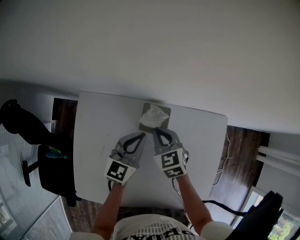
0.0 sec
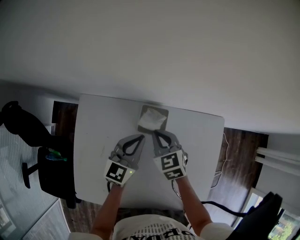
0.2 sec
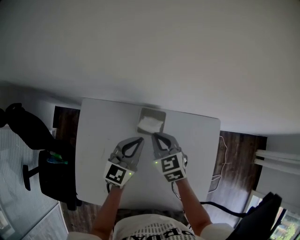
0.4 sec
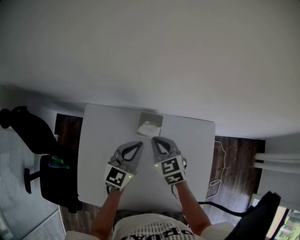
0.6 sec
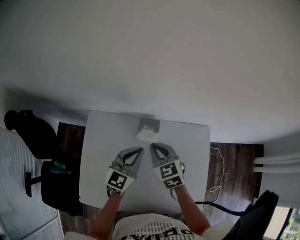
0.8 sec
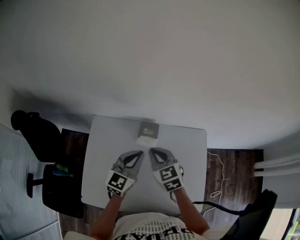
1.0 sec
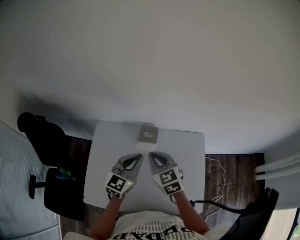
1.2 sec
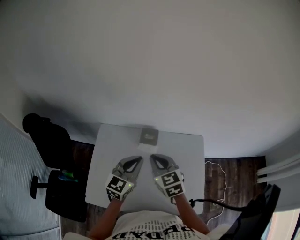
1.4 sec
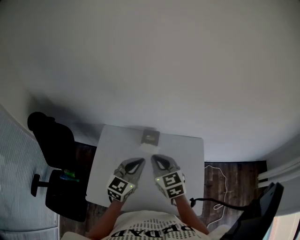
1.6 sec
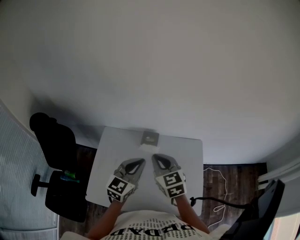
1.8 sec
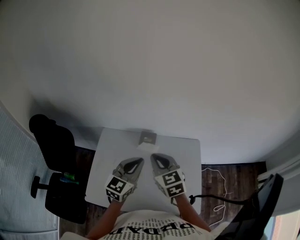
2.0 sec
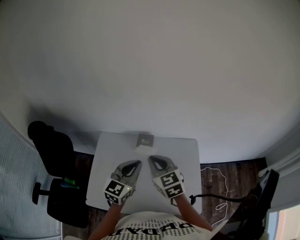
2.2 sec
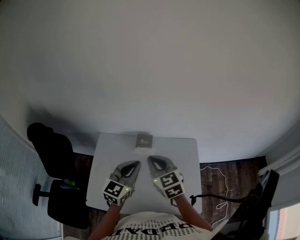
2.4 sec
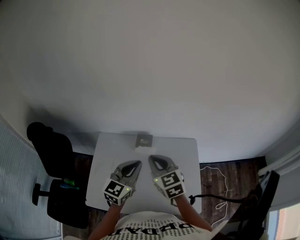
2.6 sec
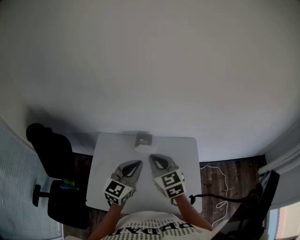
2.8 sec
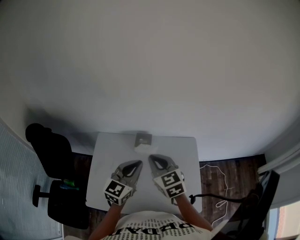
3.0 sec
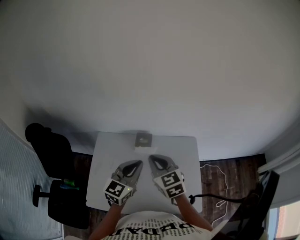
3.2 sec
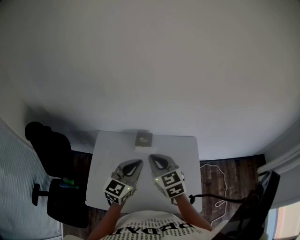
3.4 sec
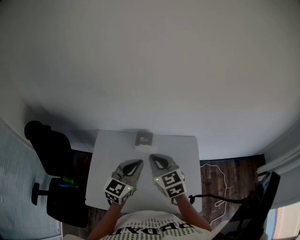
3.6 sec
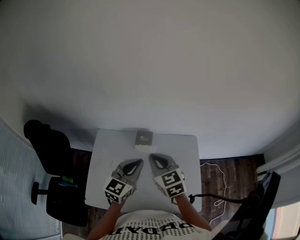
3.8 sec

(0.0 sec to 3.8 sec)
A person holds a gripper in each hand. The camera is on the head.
0.0 sec - 1.2 sec: The grippers both shift upward and backward by approximately 25 cm.
1.2 sec - 2.6 sec: The grippers both shift upward and backward by roughly 10 cm.
2.6 sec - 3.8 sec: The grippers make only small movements.

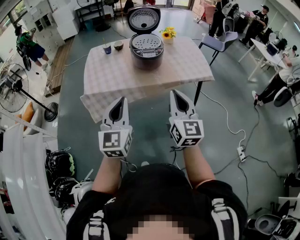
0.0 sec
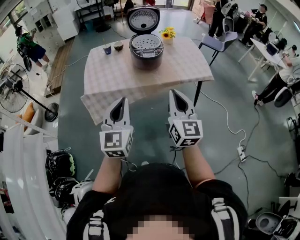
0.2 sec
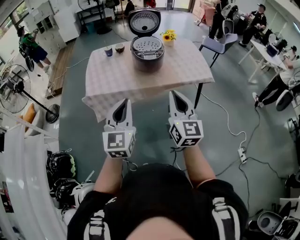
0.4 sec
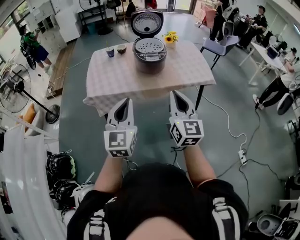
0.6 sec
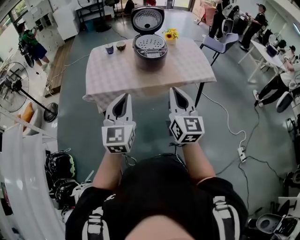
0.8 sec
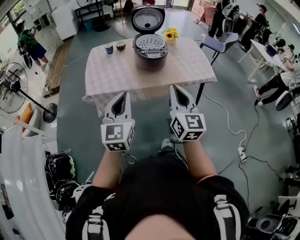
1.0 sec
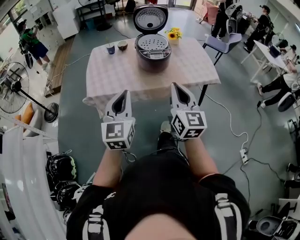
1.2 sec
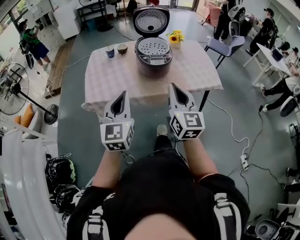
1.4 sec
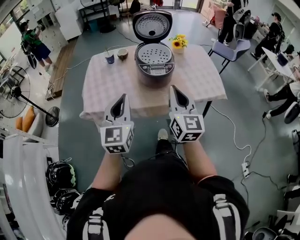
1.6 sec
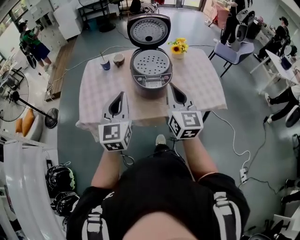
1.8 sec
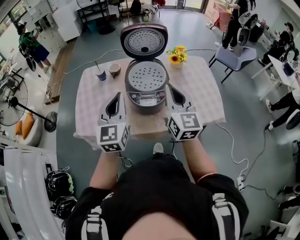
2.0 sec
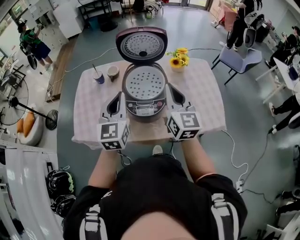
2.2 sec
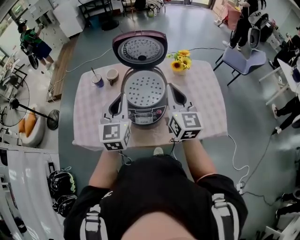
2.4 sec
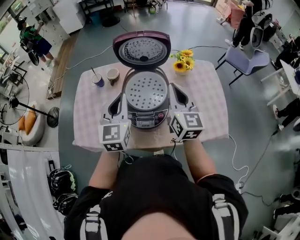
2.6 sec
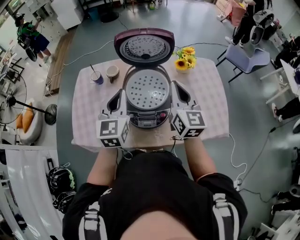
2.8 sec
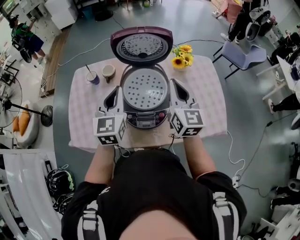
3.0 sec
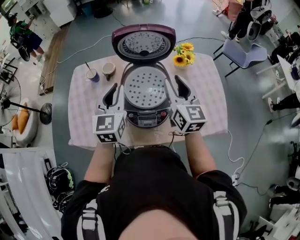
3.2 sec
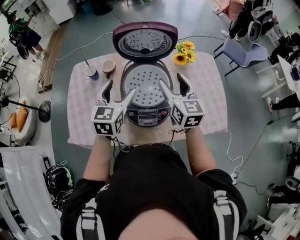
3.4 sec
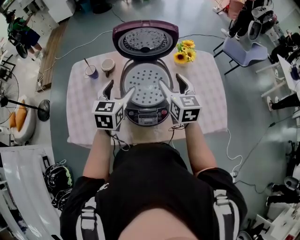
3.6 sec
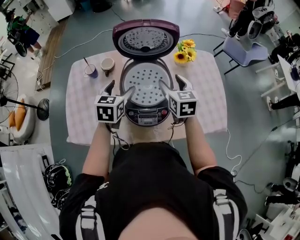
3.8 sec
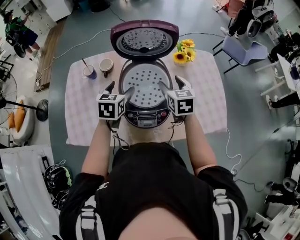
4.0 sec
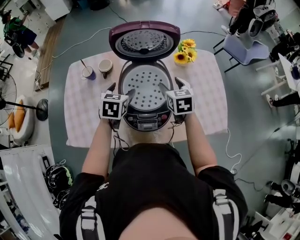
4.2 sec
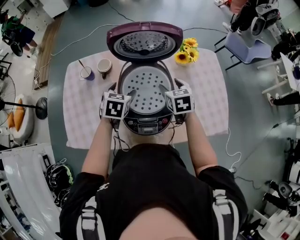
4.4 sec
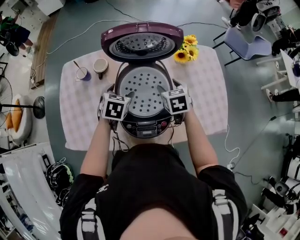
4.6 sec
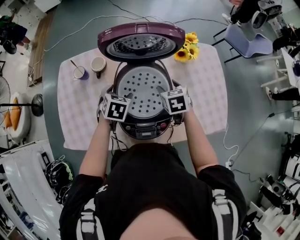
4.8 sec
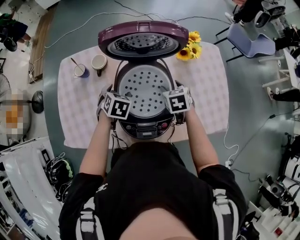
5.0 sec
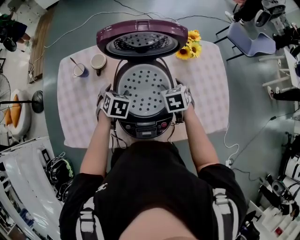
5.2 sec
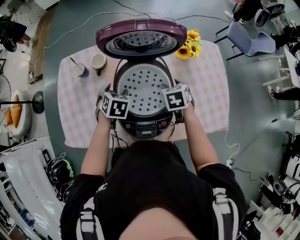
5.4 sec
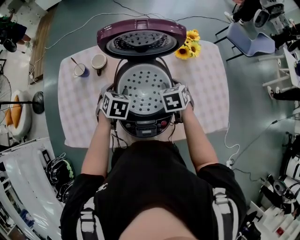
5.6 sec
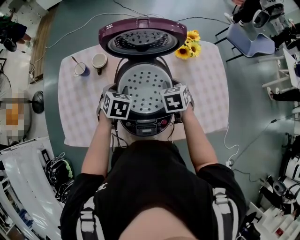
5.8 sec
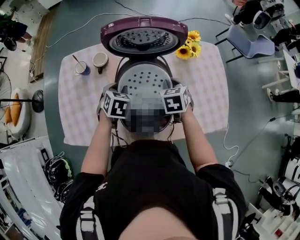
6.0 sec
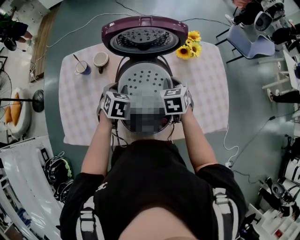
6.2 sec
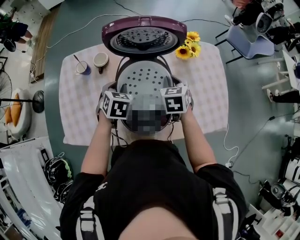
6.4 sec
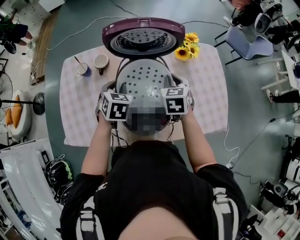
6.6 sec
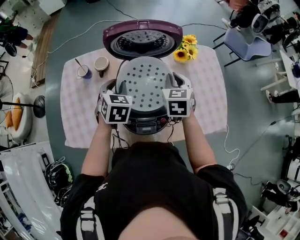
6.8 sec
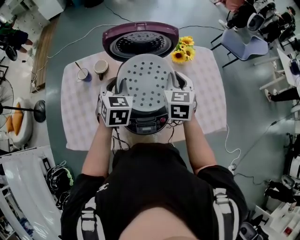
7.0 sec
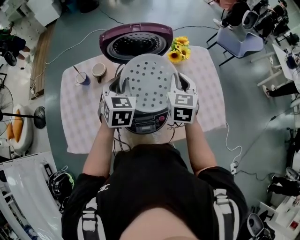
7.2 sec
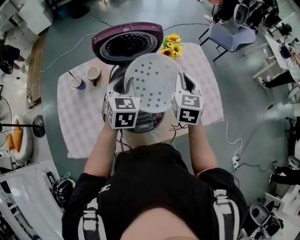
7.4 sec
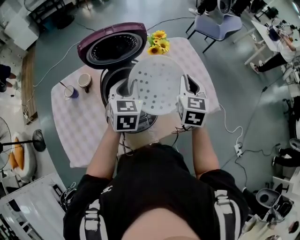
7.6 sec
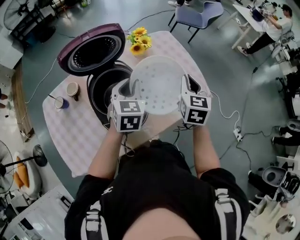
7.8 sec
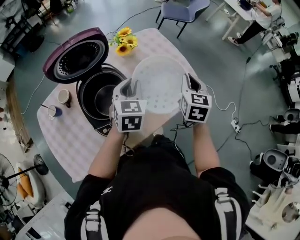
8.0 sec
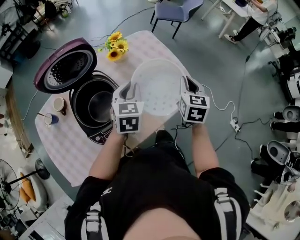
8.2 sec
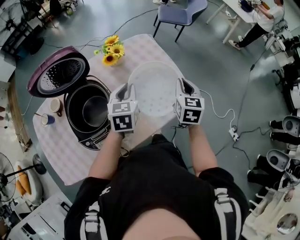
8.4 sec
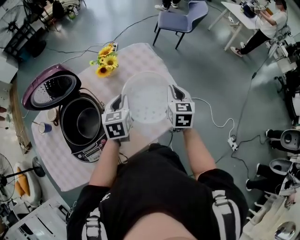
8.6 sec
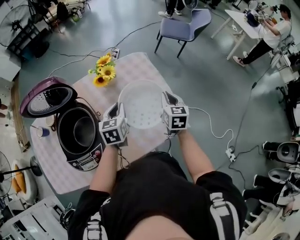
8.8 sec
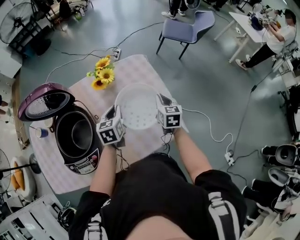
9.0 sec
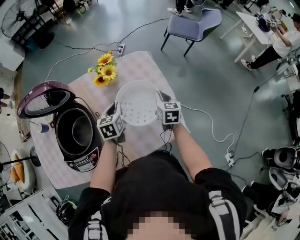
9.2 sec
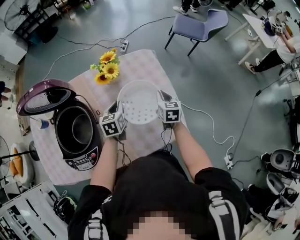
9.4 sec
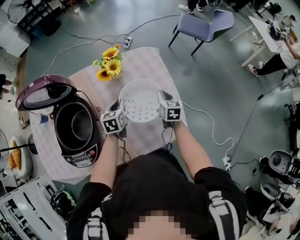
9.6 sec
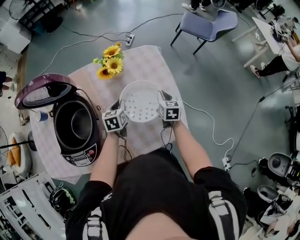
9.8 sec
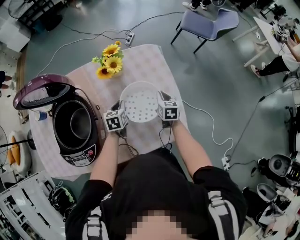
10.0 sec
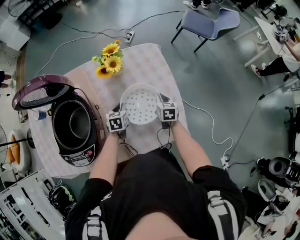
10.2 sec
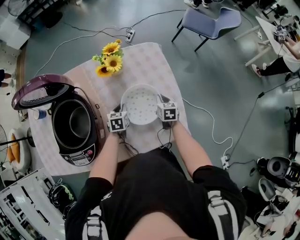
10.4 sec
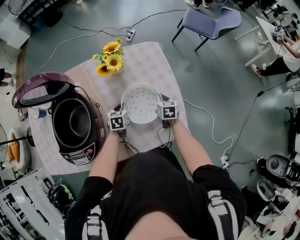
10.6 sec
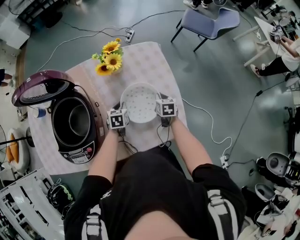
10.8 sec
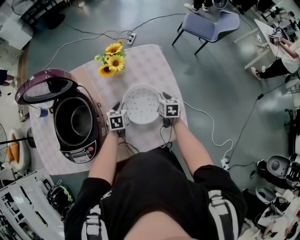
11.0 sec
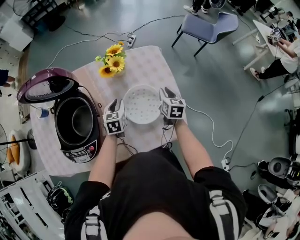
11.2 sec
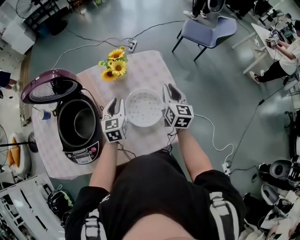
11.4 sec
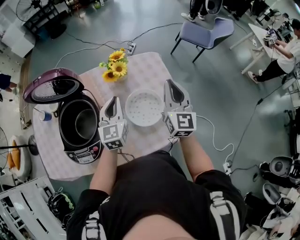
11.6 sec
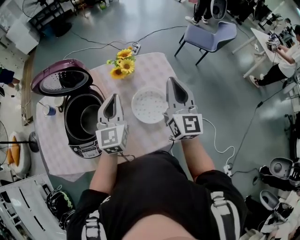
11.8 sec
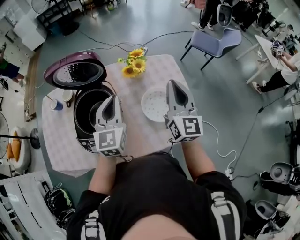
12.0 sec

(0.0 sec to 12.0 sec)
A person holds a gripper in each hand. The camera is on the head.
0.0 sec - 1.6 sec: Both grippers move forward, approximately 20 cm.
1.6 sec - 3.0 sec: The two grippers go some 40 cm forward.
3.0 sec - 4.4 sec: Both grippers travel together downward and forward, some 20 cm. The right gripper tips its fingers downward by approximately 40 degrees, and opens; the left gripper points its fingers roughly 40 degrees further downward, and opens.
4.4 sec - 6.0 sec: The right gripper closes. The left gripper closes its fingers.
6.0 sec - 7.6 sec: The left gripper goes some 15 cm upward and to the right, and changes its angle by some 30 degrees. Meanwhile the right gripper shifts approximately 20 cm upward, to the right and backward, and changes its angle by about 40 degrees.
7.6 sec - 9.0 sec: The two grippers go approximately 30 cm to the right, forward and downward. The left gripper rotates roughly 20 degrees.
9.0 sec - 10.4 sec: Both grippers move downward, about 15 cm.
10.4 sec - 12.0 sec: The two grippers go roughly 35 cm upward. The left gripper angles its fingers upward, by about 40 degrees, while the right gripper angles its fingers upward, by roughly 50 degrees.

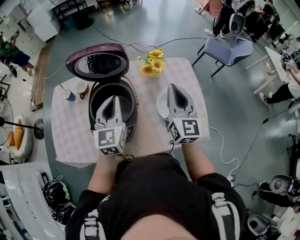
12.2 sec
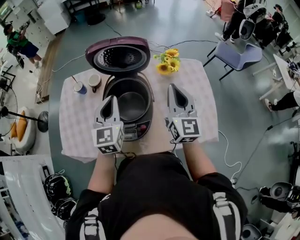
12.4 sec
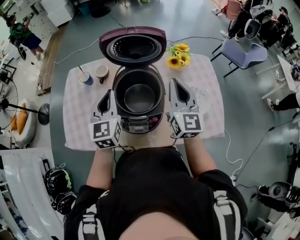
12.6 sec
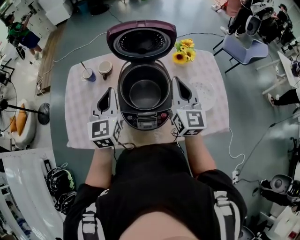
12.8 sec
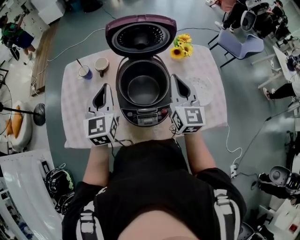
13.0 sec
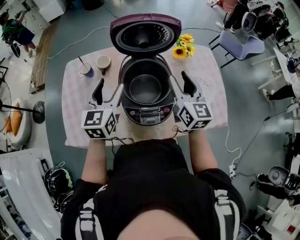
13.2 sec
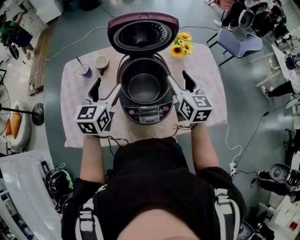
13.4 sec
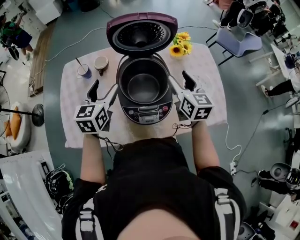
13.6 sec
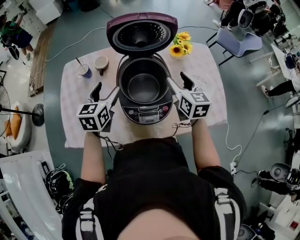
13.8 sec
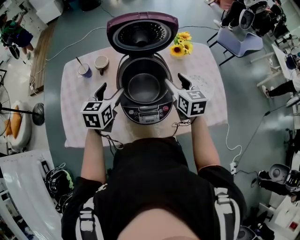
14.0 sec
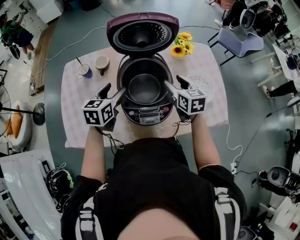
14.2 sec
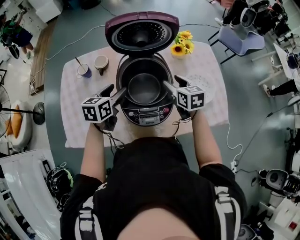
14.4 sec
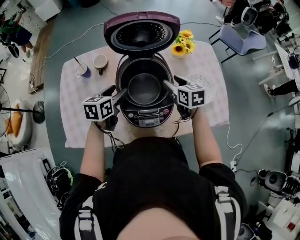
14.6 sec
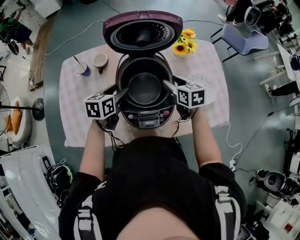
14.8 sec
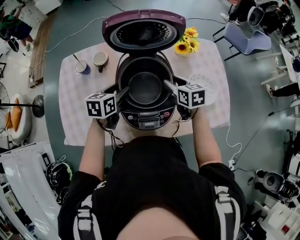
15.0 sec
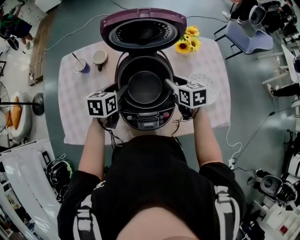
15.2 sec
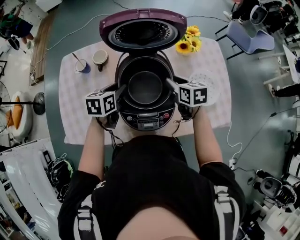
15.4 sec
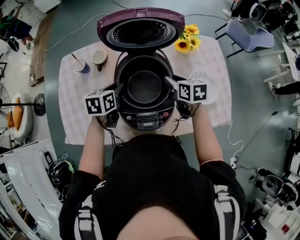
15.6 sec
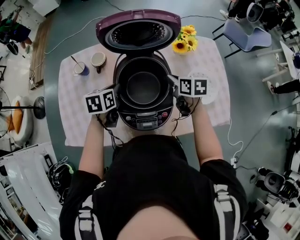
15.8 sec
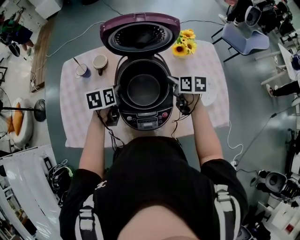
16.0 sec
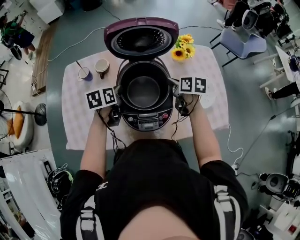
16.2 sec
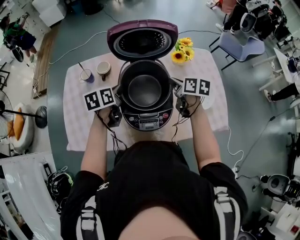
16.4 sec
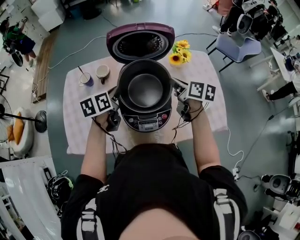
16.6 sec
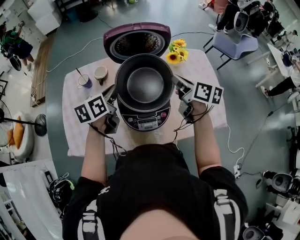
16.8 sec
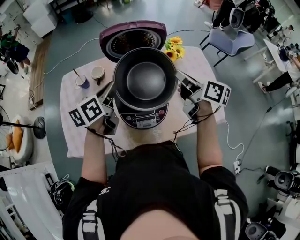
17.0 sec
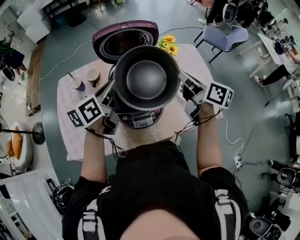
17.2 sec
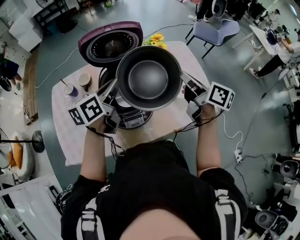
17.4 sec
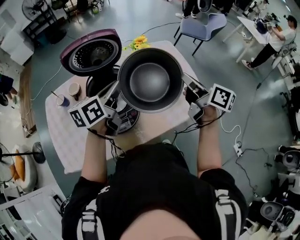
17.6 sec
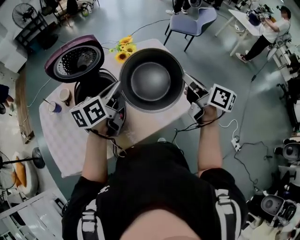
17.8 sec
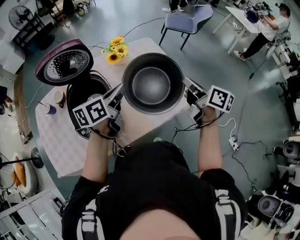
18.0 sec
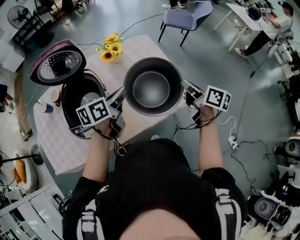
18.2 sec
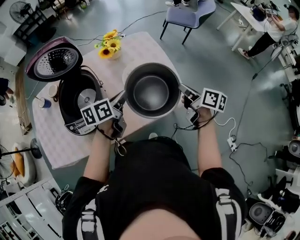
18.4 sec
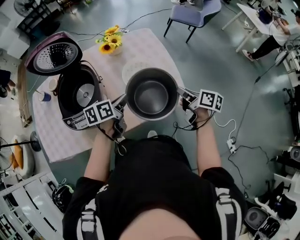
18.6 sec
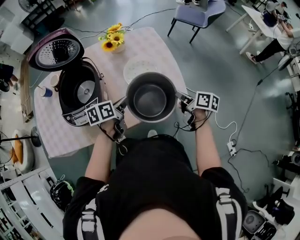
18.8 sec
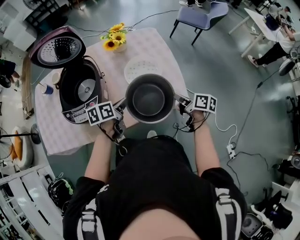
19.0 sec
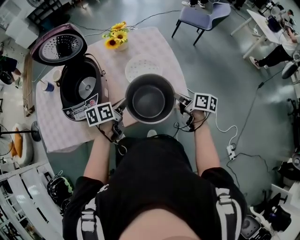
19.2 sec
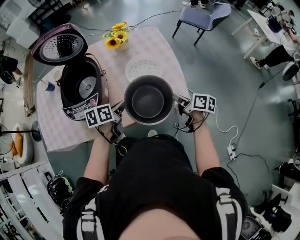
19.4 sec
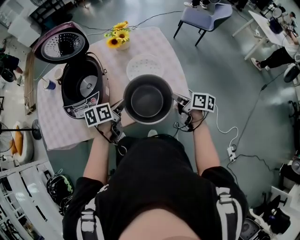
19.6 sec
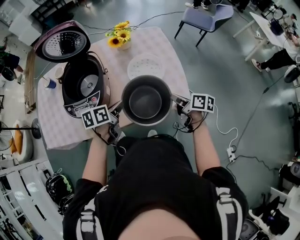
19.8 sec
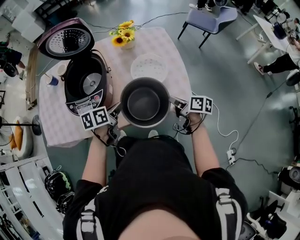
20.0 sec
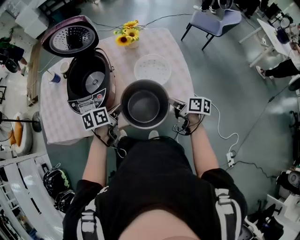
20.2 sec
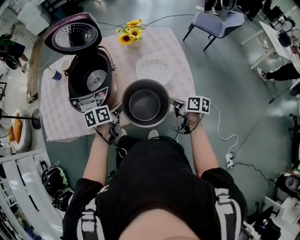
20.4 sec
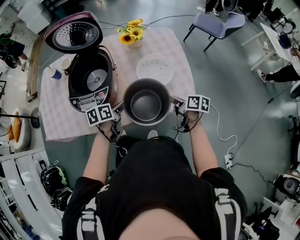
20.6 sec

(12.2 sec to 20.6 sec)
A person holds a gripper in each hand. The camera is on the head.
12.2 sec - 13.6 sec: The left gripper goes approximately 25 cm to the left, and opens. Meanwhile the right gripper travels to the left and downward by about 20 cm, changes its angle by approximately 20 degrees, and opens up.
13.6 sec - 15.0 sec: The two grippers go roughly 10 cm downward. The right gripper rotates about 30 degrees. The left gripper changes its angle by roughly 30 degrees.
15.0 sec - 16.4 sec: The right gripper swivels some 20 degrees, and closes up; the left gripper closes up.
16.4 sec - 17.8 sec: The left gripper heads to the right and upward, covering approximately 30 cm, and swivels roughly 30 degrees. Meanwhile the right gripper is displaced to the right, upward and backward by approximately 35 cm, and changes its angle by roughly 30 degrees.
17.8 sec - 19.2 sec: The grippers both shift downward and to the right by approximately 25 cm. The left gripper swivels approximately 30 degrees, while the right gripper swivels about 30 degrees.
19.2 sec - 20.6 sec: The two grippers go some 5 cm to the left.
